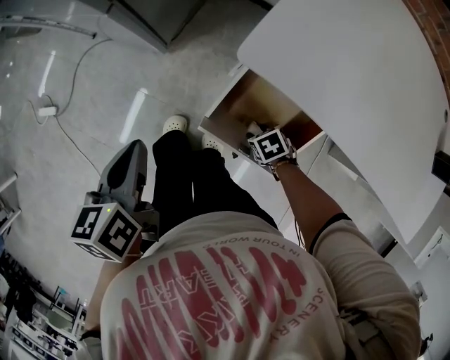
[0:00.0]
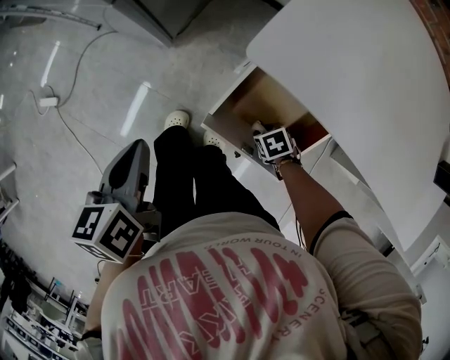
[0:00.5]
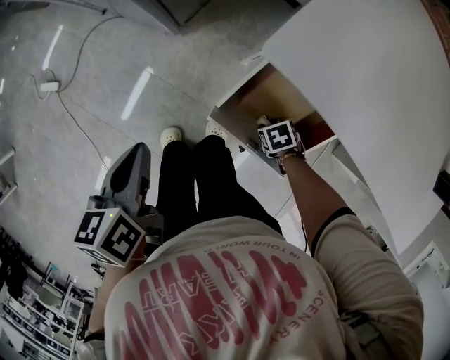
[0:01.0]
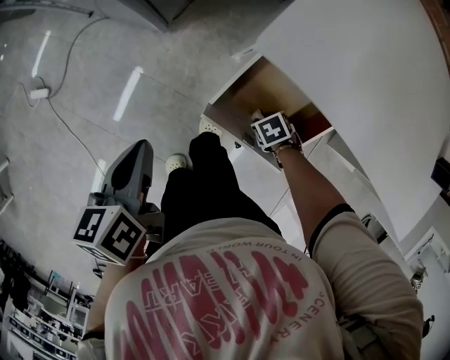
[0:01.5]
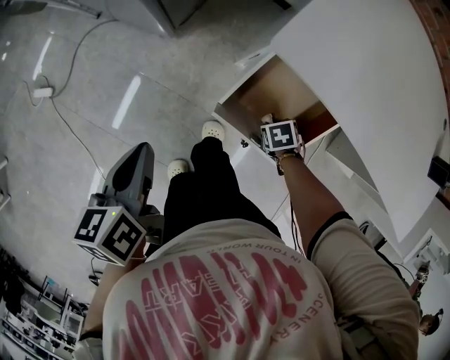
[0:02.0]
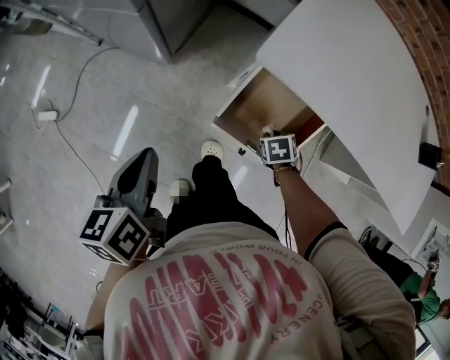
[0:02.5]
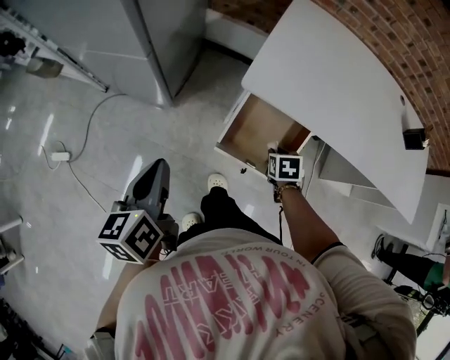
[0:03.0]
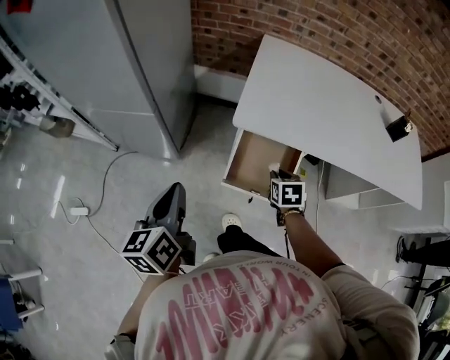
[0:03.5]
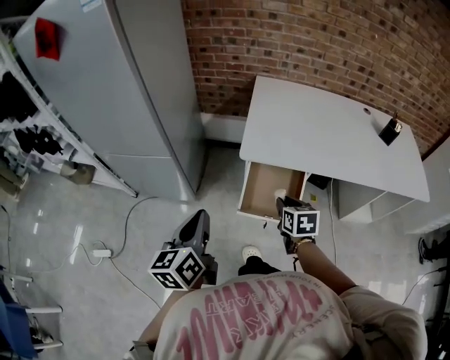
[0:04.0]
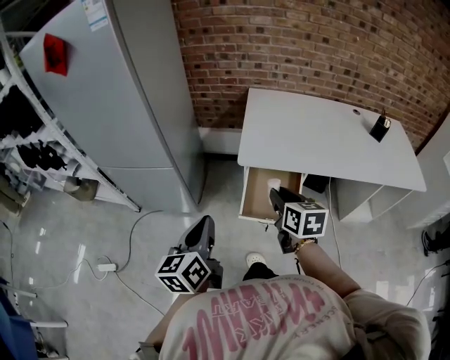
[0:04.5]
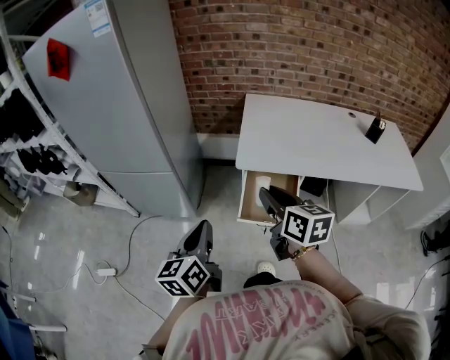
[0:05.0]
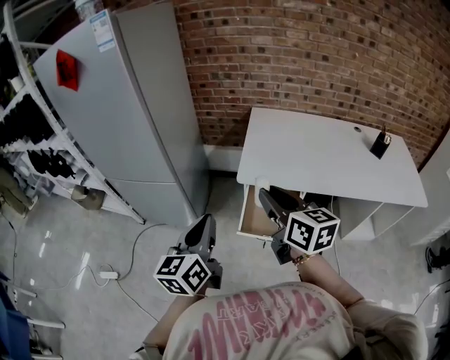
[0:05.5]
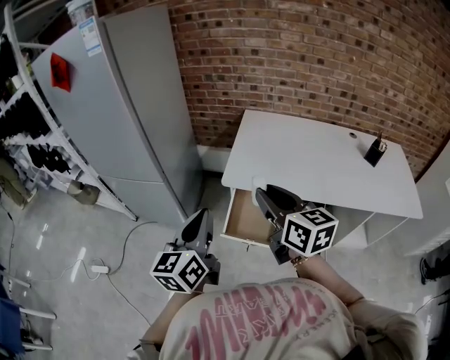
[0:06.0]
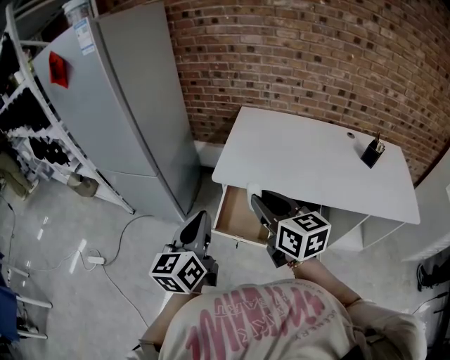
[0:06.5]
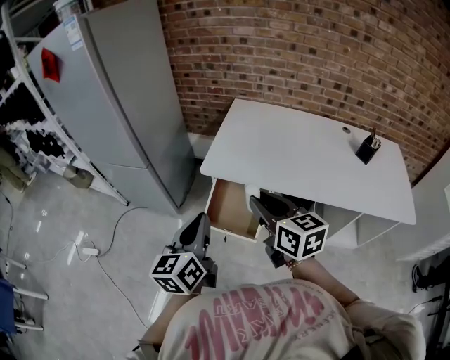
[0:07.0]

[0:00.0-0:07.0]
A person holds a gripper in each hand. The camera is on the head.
0:00.0 to 0:02.0: The right gripper closes its fingers. Meanwhile the left gripper shifts by roughly 5 cm.
0:02.0 to 0:03.5: The left gripper travels upward by roughly 20 cm, and changes its angle by approximately 30 degrees; the right gripper heads upward, covering about 25 cm, and tilts its fingers roughly 40 degrees upward.
0:03.5 to 0:05.0: The right gripper goes about 30 cm upward and backward, and tilts its fingers some 40 degrees upward, while the left gripper goes approximately 10 cm backward and upward.
0:05.0 to 0:07.0: The grippers both shift to the right by approximately 20 cm.

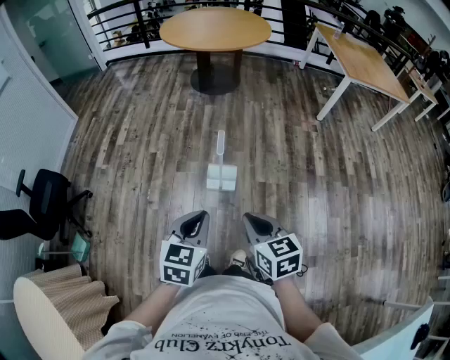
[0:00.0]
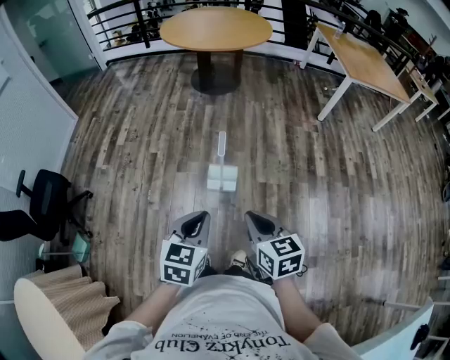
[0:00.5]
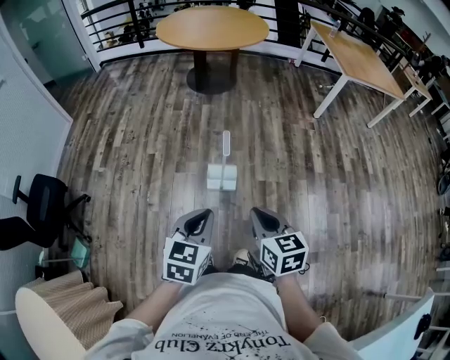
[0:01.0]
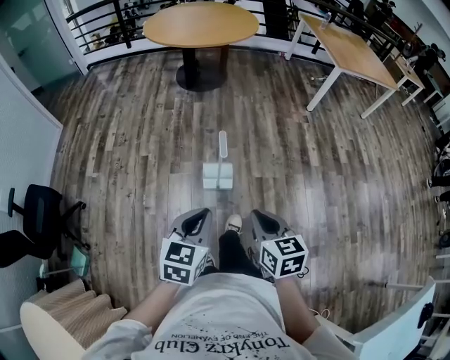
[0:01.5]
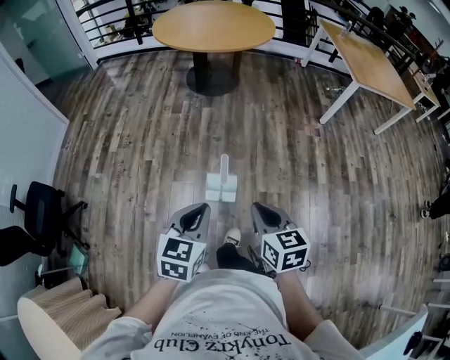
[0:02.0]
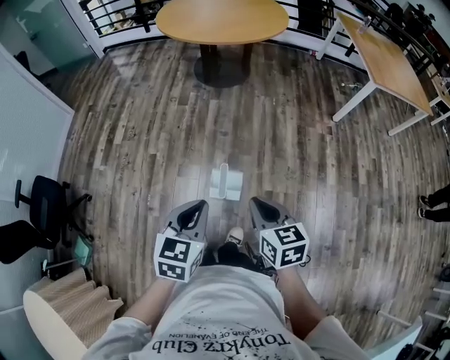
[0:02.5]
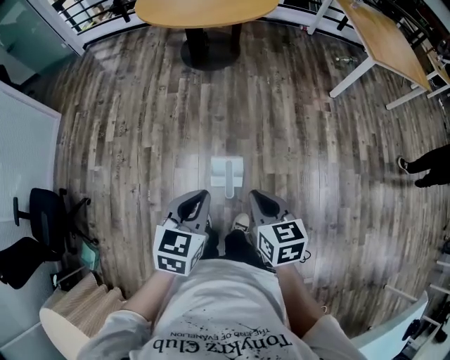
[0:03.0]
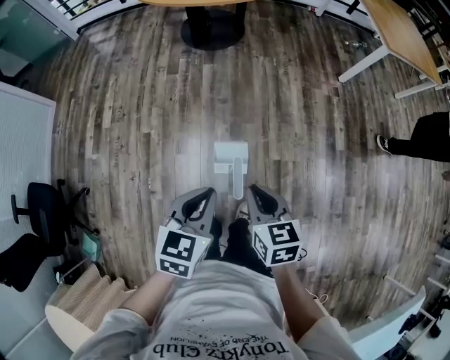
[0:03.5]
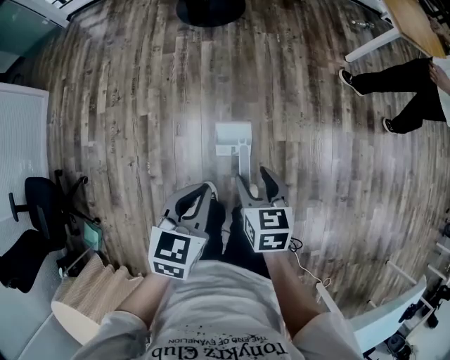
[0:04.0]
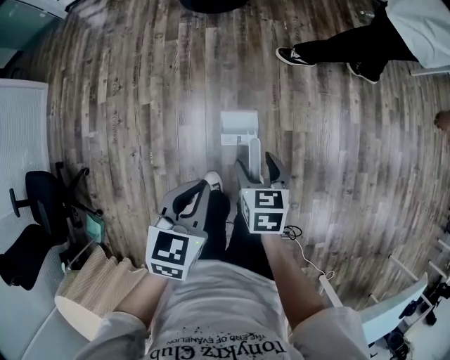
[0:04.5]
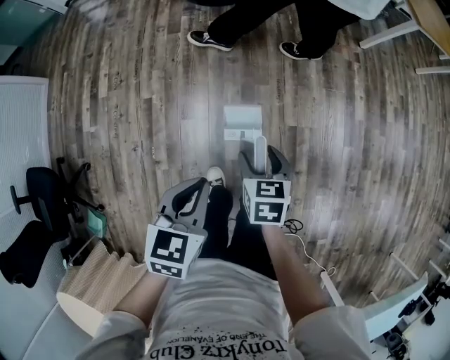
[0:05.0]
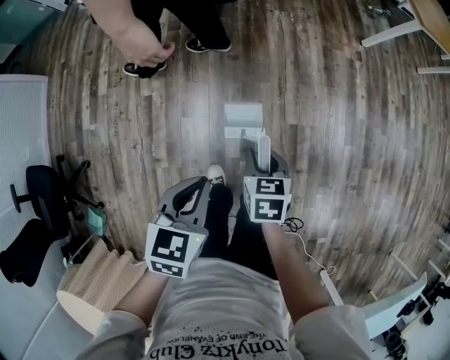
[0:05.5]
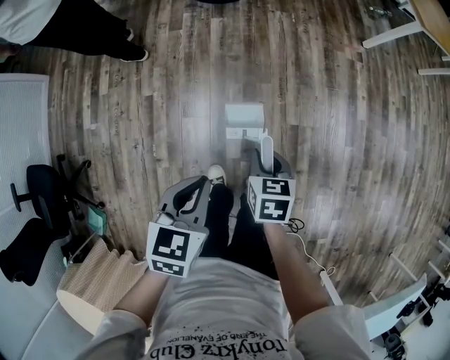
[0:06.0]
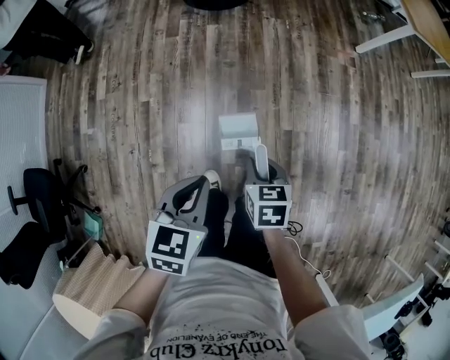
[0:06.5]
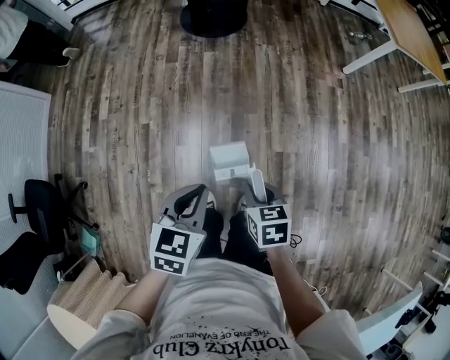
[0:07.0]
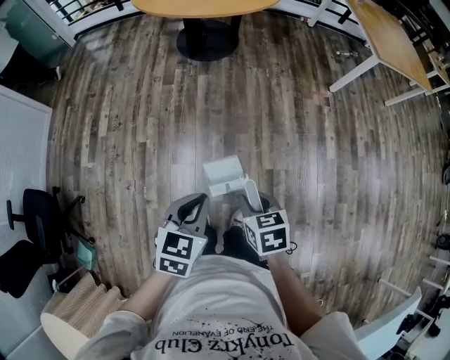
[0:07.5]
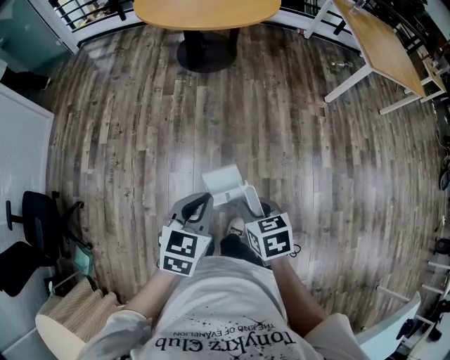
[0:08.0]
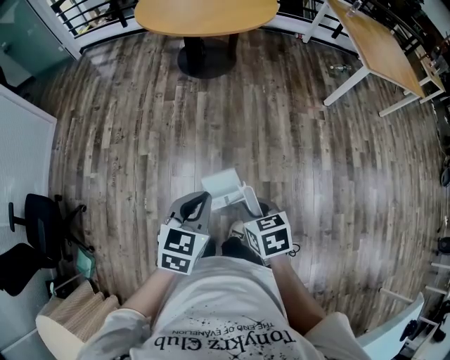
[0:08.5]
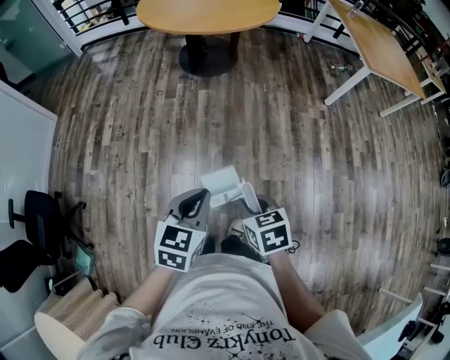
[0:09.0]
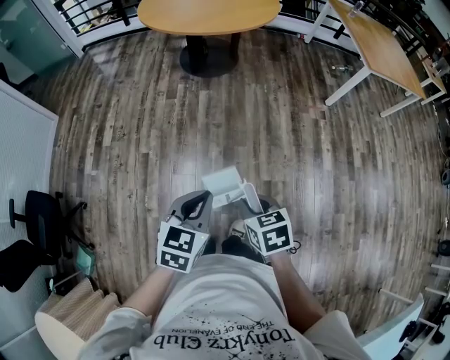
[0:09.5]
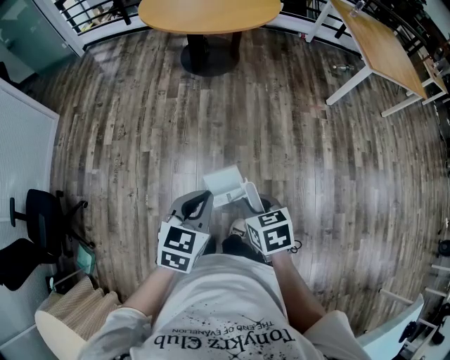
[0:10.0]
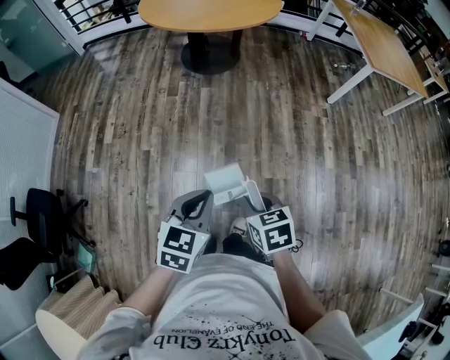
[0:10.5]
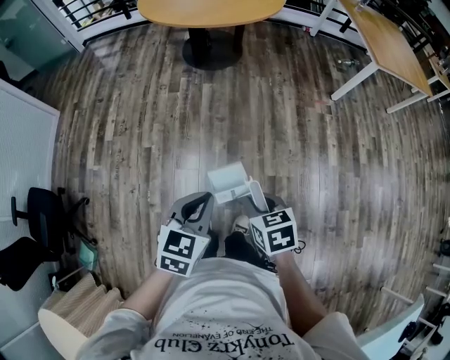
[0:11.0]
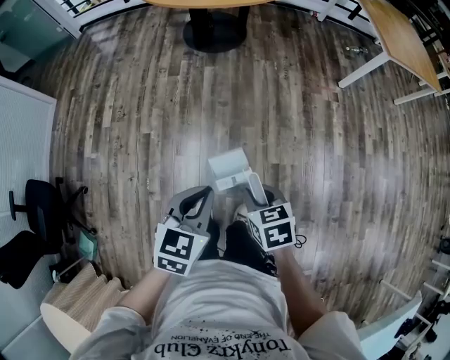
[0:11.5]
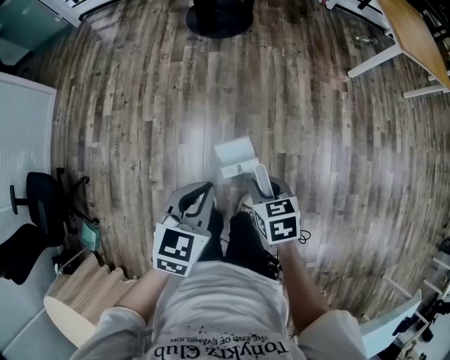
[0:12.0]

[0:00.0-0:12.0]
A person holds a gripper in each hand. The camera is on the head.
0:00.0 to 0:02.0: Both grippers move forward, about 15 cm.
0:02.0 to 0:04.0: The left gripper shifts approximately 20 cm forward and downward; the right gripper moves forward, downward and to the left, approximately 25 cm, and opens its fingers.
0:04.0 to 0:06.0: The left gripper shifts by about 5 cm. The right gripper moves downward, roughly 10 cm, and closes.
0:06.0 to 0:08.0: The right gripper is displaced upward and backward by about 15 cm, while the left gripper is displaced upward and to the right by roughly 10 cm.
0:08.0 to 0:10.0: The grippers make only small movements.
0:10.0 to 0:12.0: The left gripper moves downward, roughly 5 cm. Meanwhile the right gripper travels downward by about 10 cm.

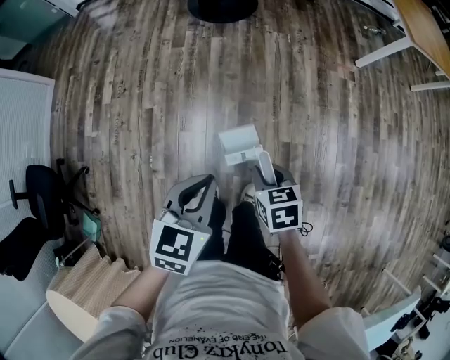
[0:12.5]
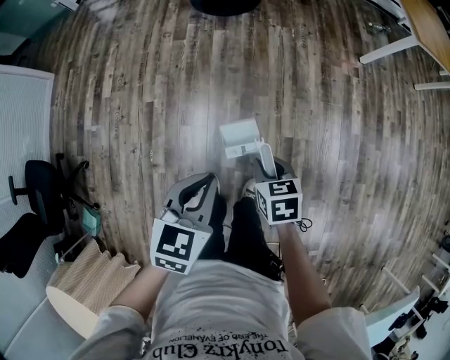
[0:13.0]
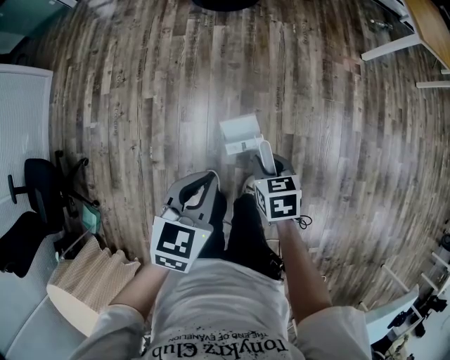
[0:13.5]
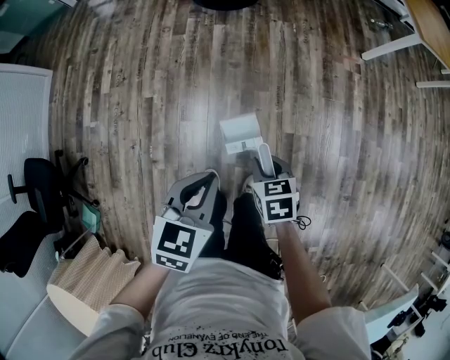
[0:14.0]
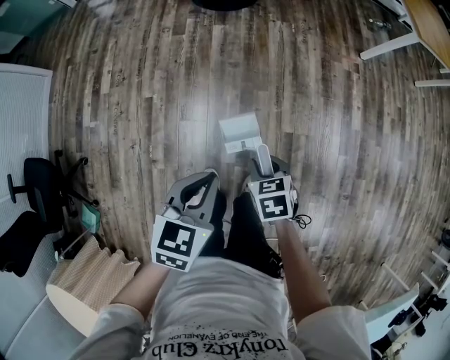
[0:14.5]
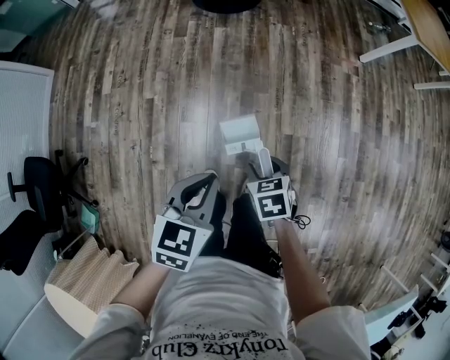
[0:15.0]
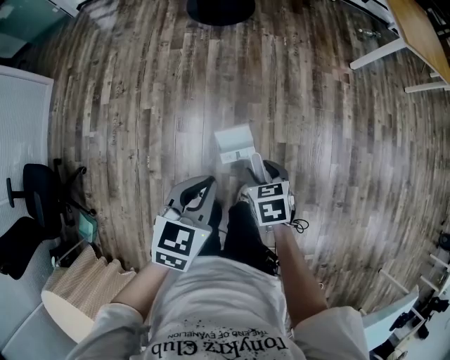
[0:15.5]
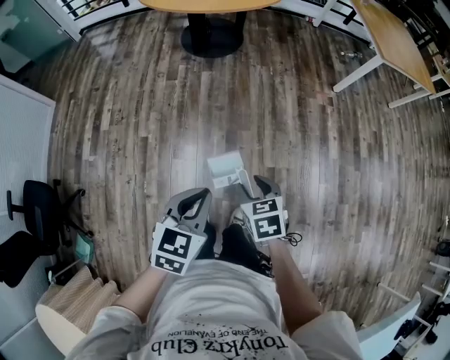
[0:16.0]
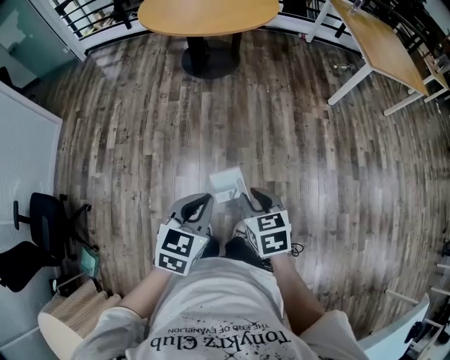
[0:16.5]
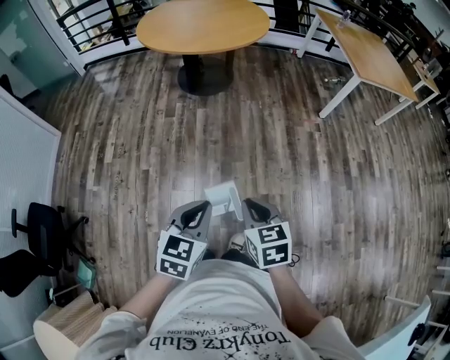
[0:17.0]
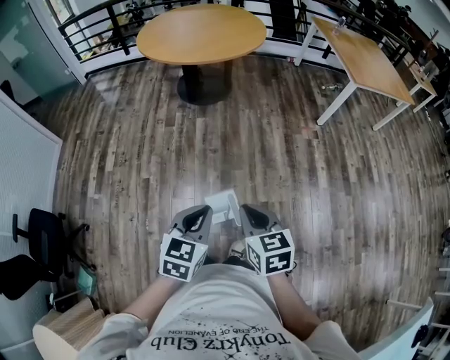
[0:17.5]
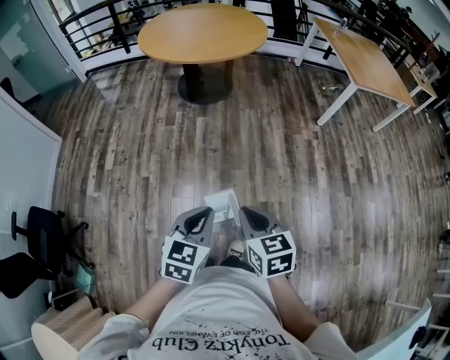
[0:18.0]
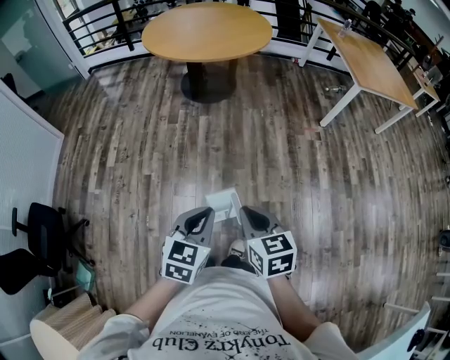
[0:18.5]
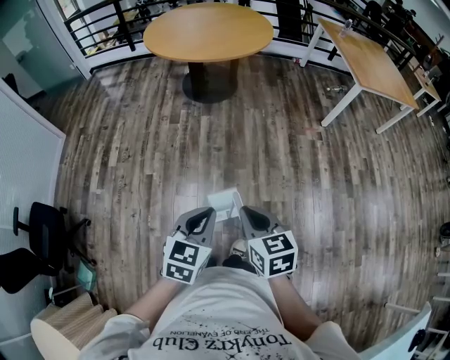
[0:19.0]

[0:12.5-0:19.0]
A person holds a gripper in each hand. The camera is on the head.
0:12.5 to 0:14.5: The grippers make only small movements.
0:14.5 to 0:17.0: The left gripper heads upward, covering approximately 10 cm. Meanwhile the right gripper is displaced upward by some 25 cm, and swivels roughly 20 degrees.
0:17.0 to 0:19.0: The grippers move only a little.

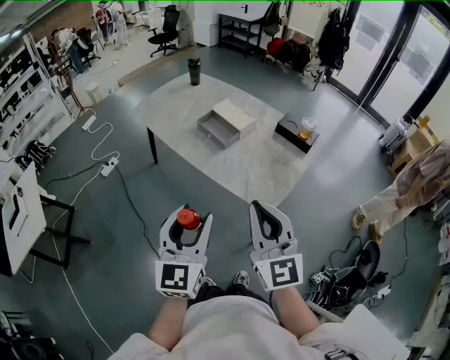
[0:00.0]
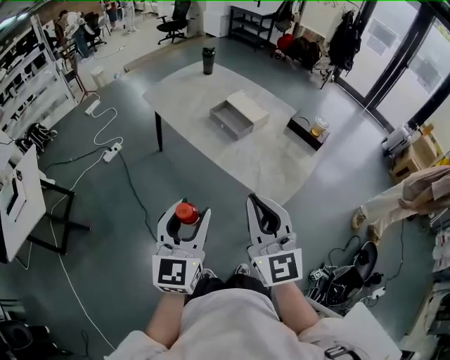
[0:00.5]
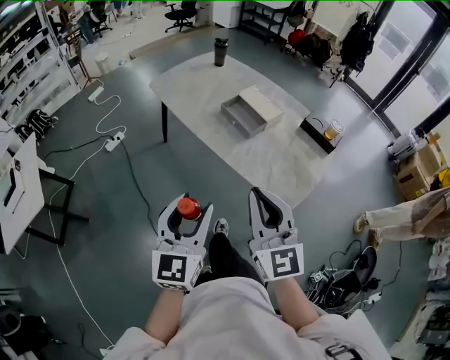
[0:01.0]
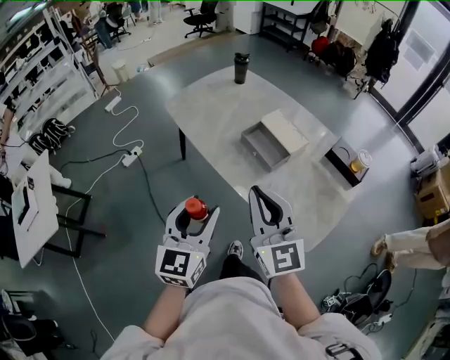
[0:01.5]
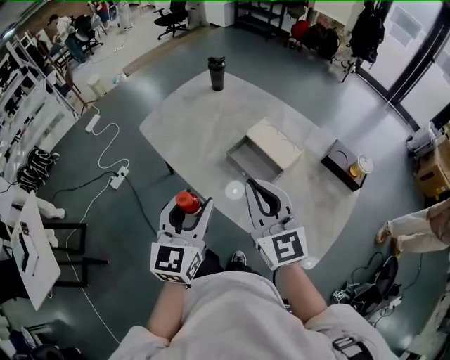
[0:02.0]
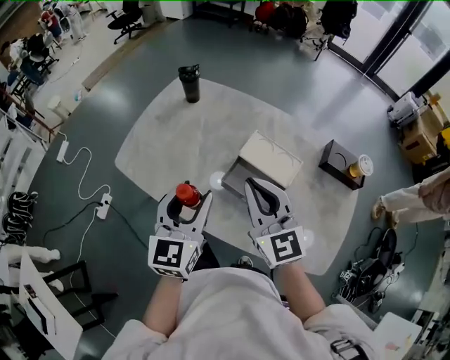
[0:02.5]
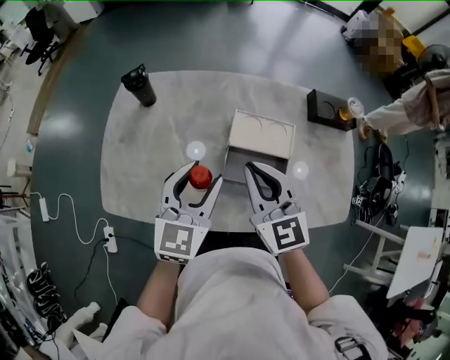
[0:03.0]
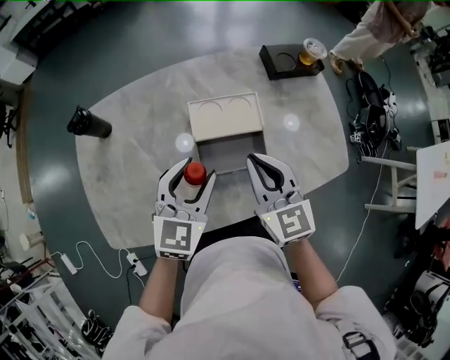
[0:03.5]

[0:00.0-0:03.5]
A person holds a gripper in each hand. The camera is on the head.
0:00.0 to 0:02.0: The grippers both shift forward by roughly 40 cm.
0:02.0 to 0:03.5: The left gripper ends up some 30 cm from where it was, and swivels roughly 70 degrees; the right gripper ends up about 25 cm from where it was, and changes its angle by approximately 60 degrees.
